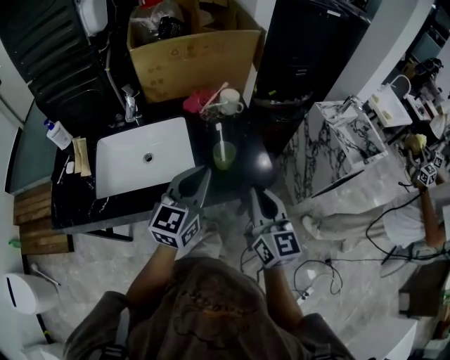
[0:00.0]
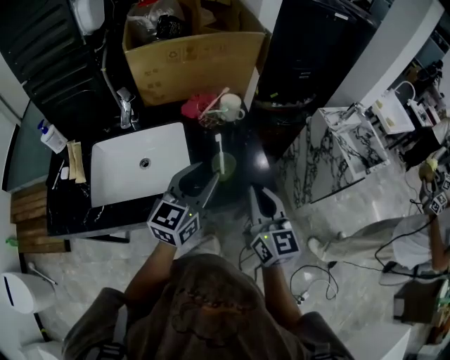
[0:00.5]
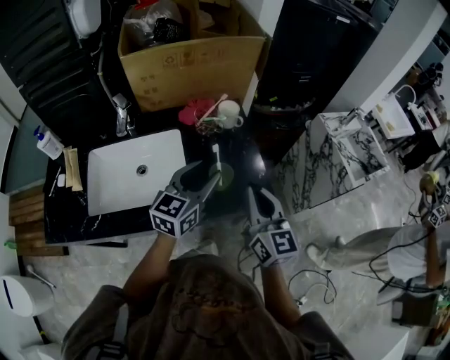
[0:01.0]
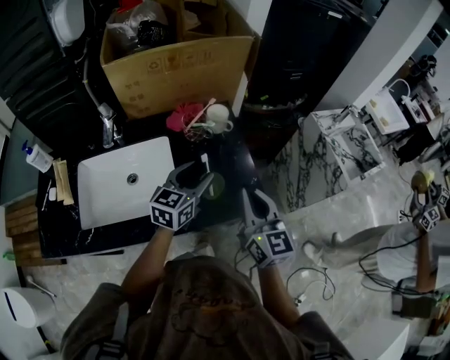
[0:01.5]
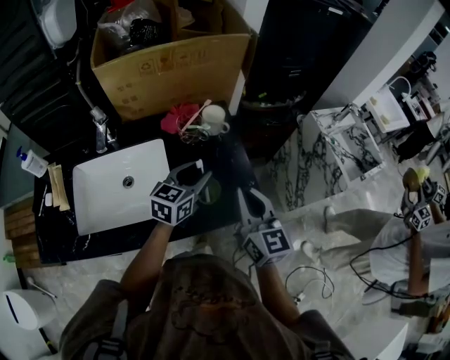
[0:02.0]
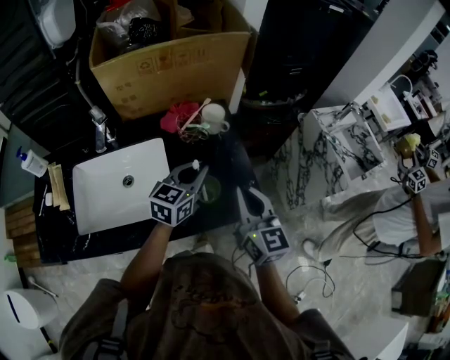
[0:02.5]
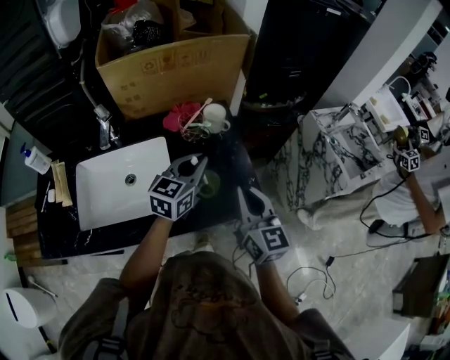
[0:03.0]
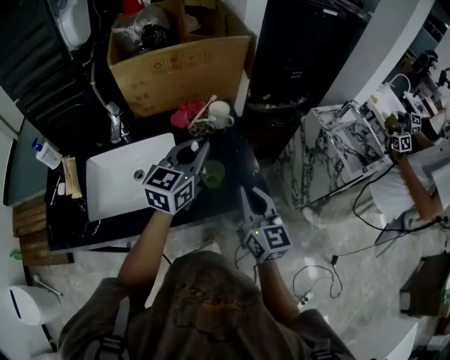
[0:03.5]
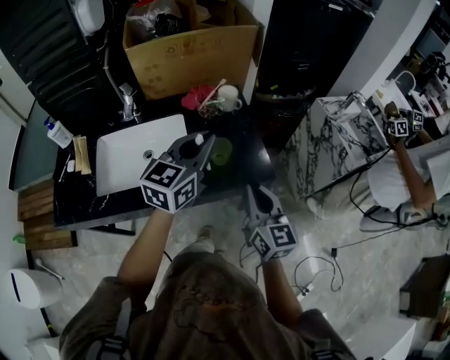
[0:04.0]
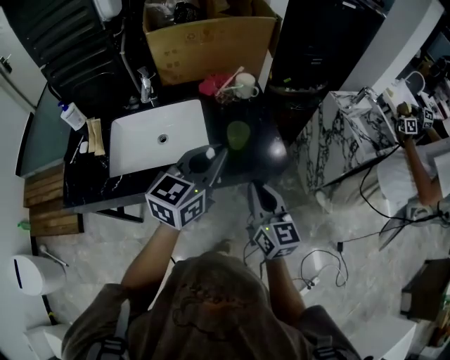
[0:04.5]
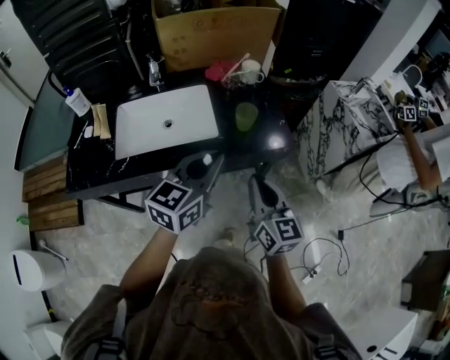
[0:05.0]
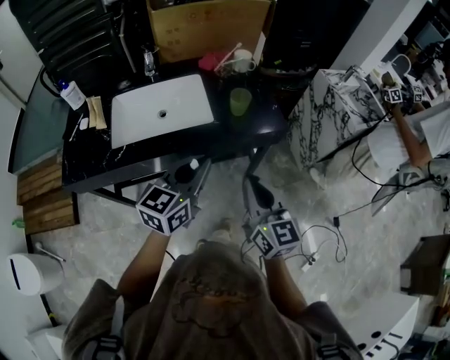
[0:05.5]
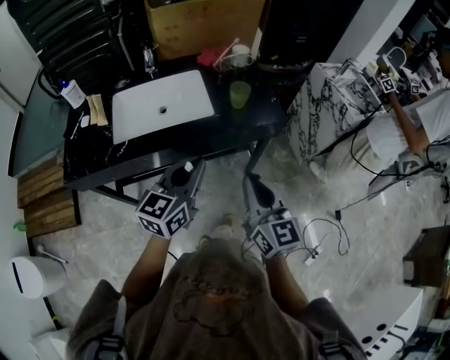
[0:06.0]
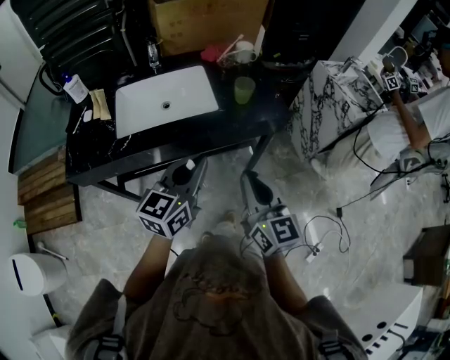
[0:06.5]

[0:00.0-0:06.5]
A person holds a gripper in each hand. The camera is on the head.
0:00.0 to 0:02.0: The right gripper is displaced forward by some 15 cm, while the left gripper goes approximately 20 cm forward and downward, changes its angle by some 20 degrees, and opens up.
0:02.0 to 0:04.5: The right gripper moves backward, some 15 cm. The left gripper shifts approximately 25 cm backward and upward, and closes.
0:04.5 to 0:06.5: The left gripper is displaced backward and to the left by roughly 20 cm; the right gripper heads backward, covering approximately 15 cm.

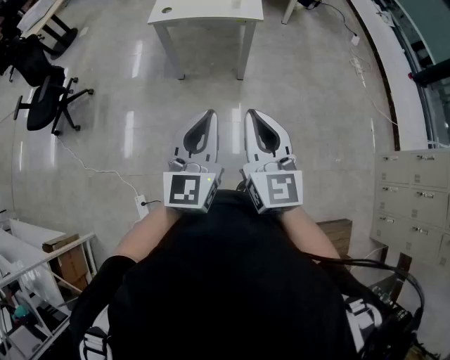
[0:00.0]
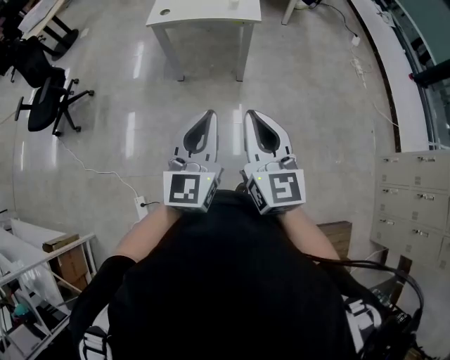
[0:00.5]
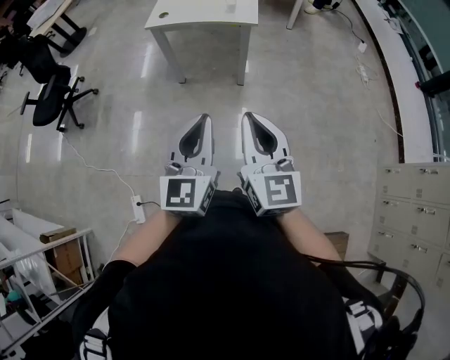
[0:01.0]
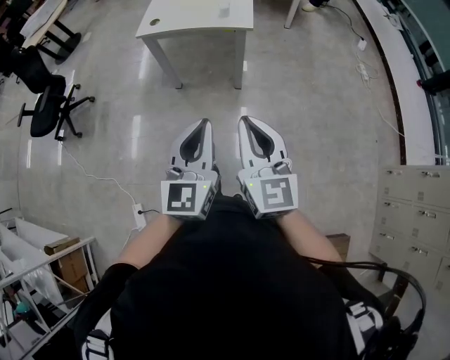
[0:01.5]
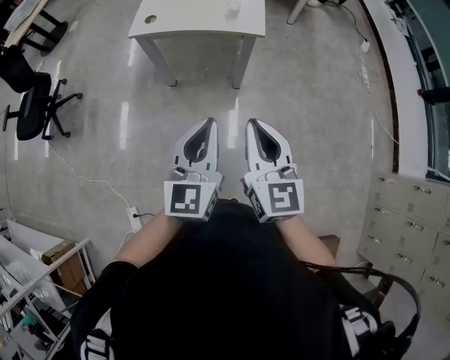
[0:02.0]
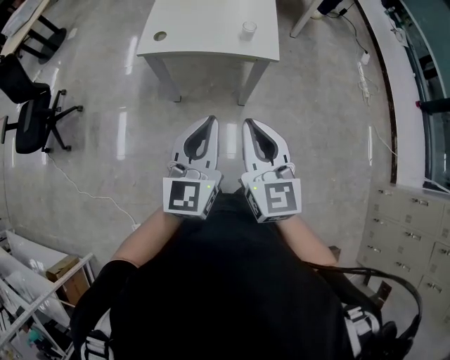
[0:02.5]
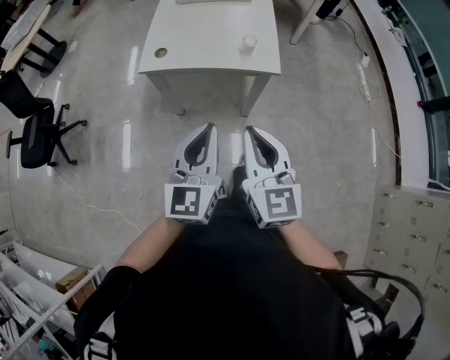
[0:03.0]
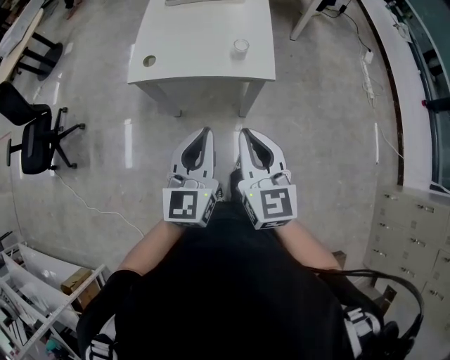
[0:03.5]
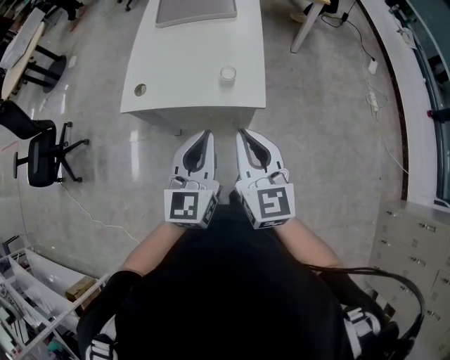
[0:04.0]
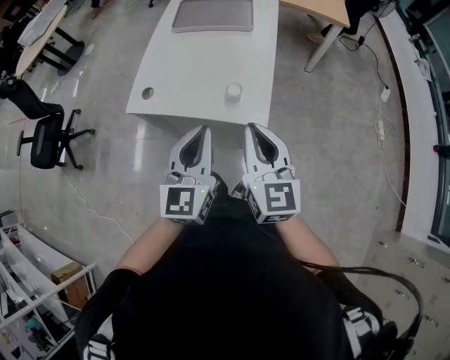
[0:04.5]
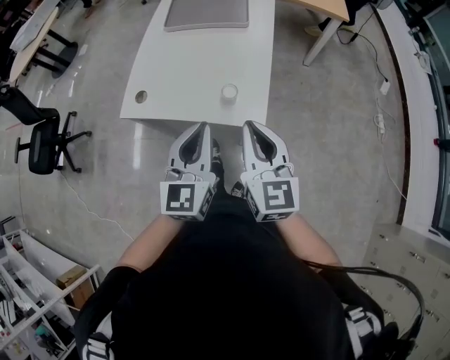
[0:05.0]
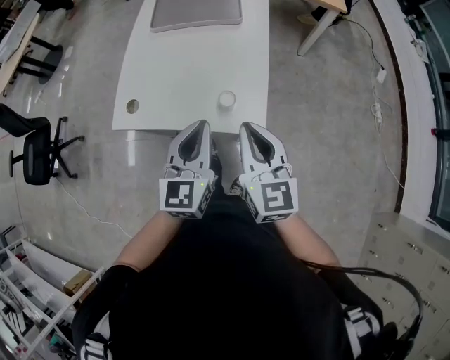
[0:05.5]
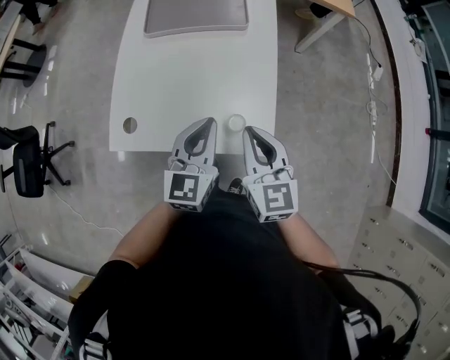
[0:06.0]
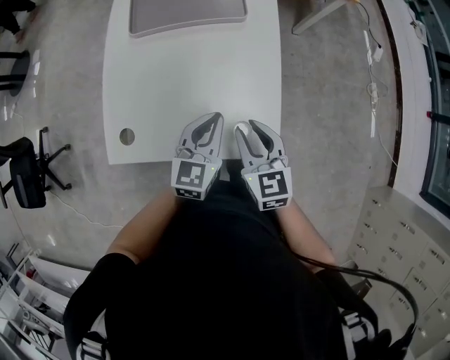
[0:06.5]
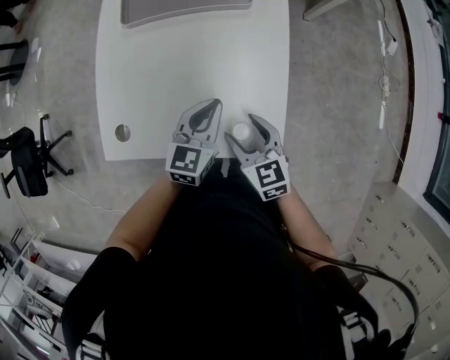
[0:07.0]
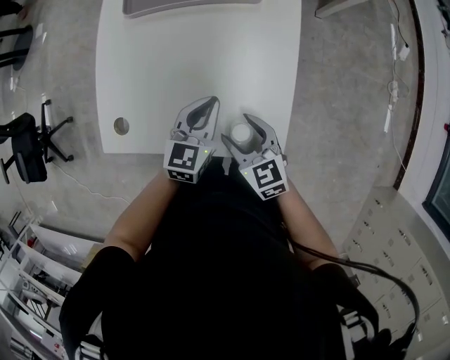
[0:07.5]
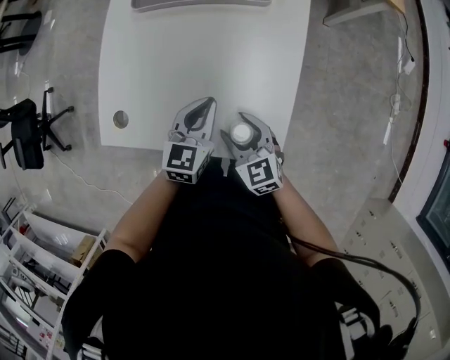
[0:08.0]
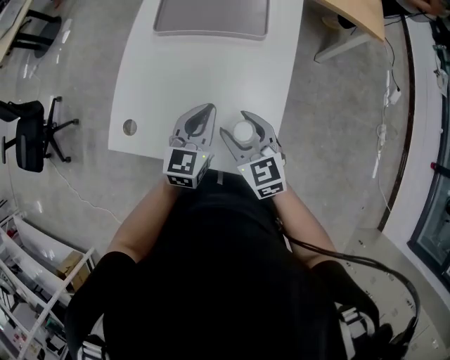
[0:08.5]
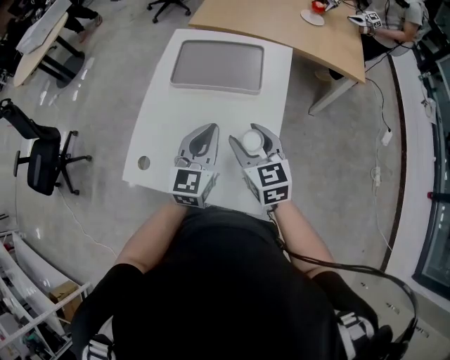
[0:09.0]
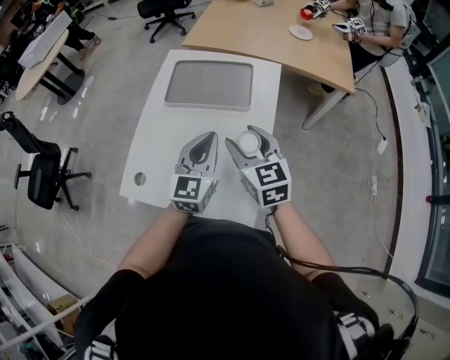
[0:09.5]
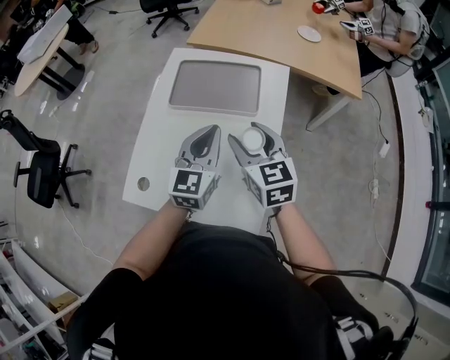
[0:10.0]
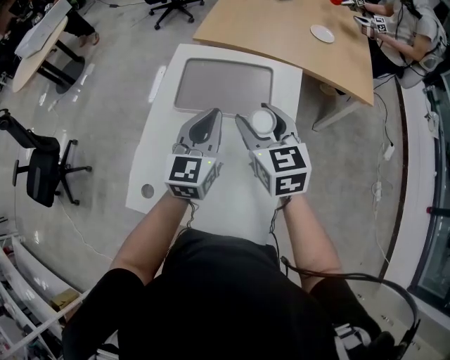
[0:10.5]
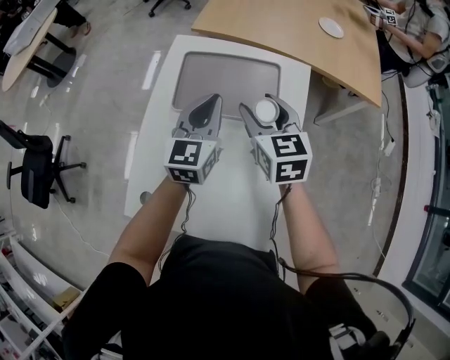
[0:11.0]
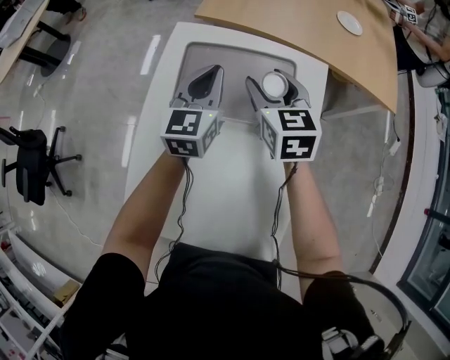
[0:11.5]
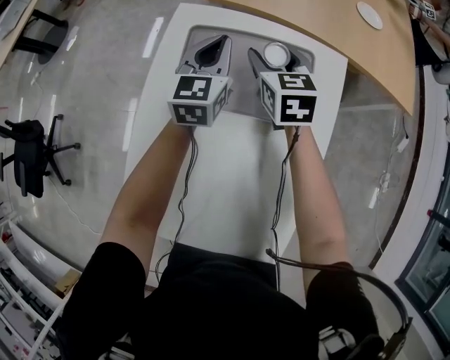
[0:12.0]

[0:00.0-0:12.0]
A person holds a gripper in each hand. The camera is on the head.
0:00.0 to 0:02.0: Both grippers move forward, roughly 25 cm.
0:02.0 to 0:04.0: Both grippers move forward, roughly 35 cm.
0:04.0 to 0:06.0: The two grippers go approximately 30 cm forward.
0:06.0 to 0:08.0: The left gripper is displaced downward and forward by some 20 cm; the right gripper goes roughly 20 cm downward, turns by roughly 30 degrees, and opens.
0:08.0 to 0:10.0: The right gripper moves upward and forward, some 35 cm. Meanwhile the left gripper moves upward, approximately 25 cm, and swivels about 20 degrees.
0:10.0 to 0:12.0: Both grippers travel together forward and downward, about 40 cm.

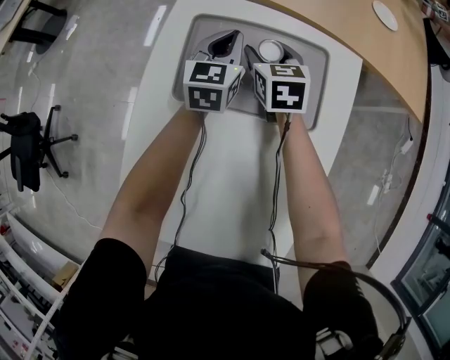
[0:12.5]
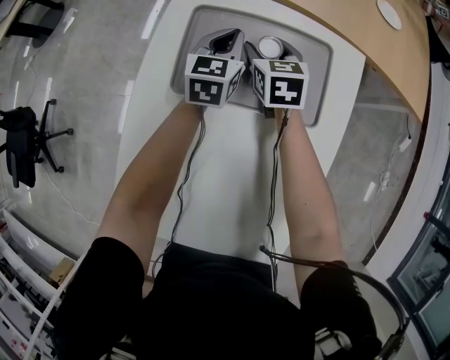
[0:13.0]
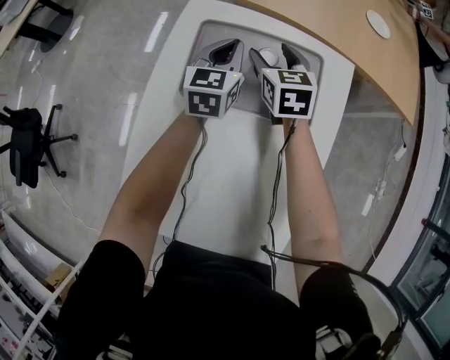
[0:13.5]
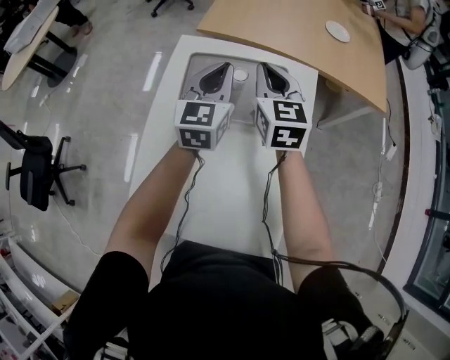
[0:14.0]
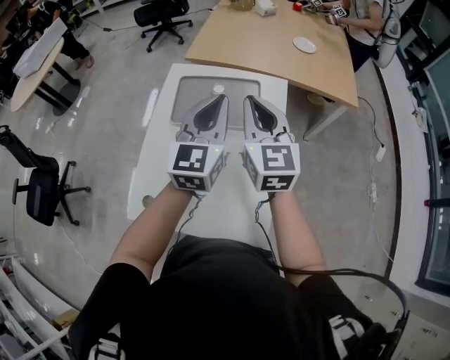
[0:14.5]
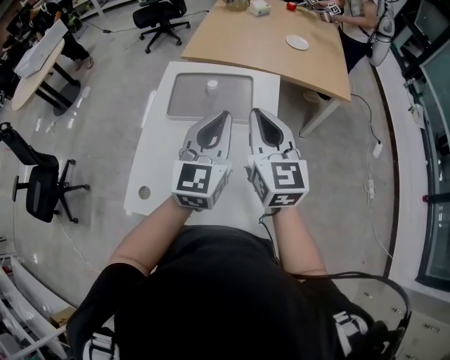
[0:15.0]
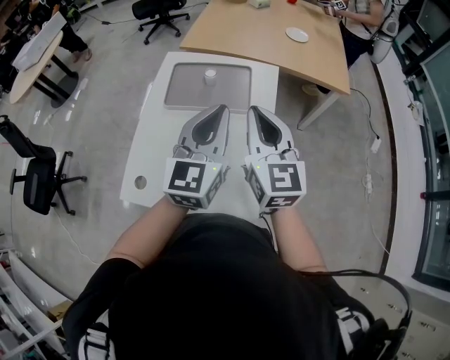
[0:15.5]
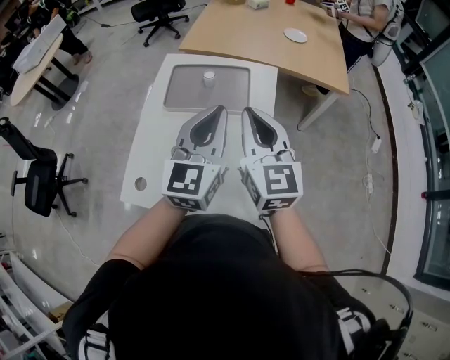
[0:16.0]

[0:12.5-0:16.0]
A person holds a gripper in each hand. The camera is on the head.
0:12.5 to 0:14.5: The two grippers go approximately 50 cm upward and backward. The right gripper tips its fingers upward by some 30 degrees, and closes up.
0:14.5 to 0:16.0: The grippers both shift backward by some 10 cm.

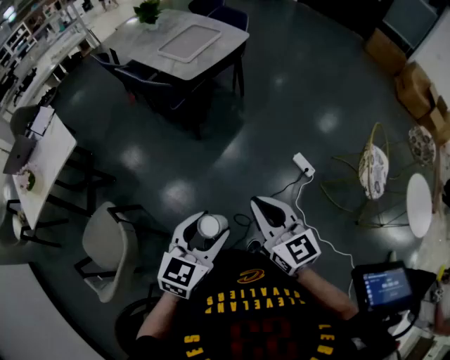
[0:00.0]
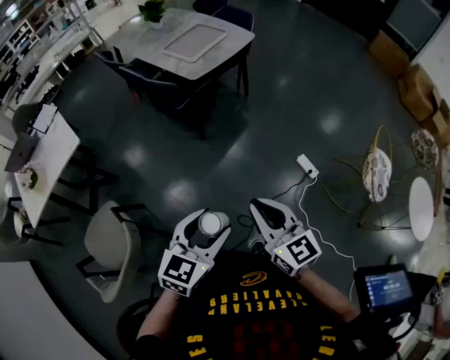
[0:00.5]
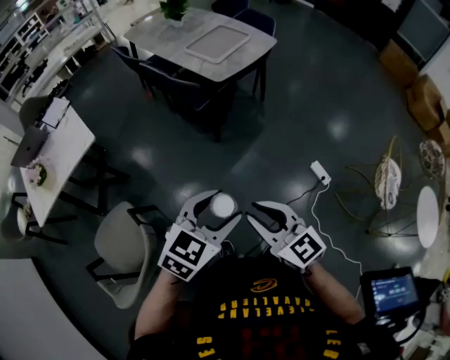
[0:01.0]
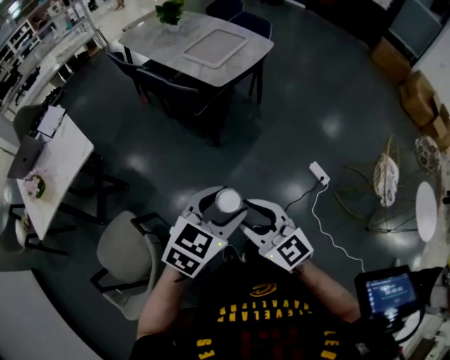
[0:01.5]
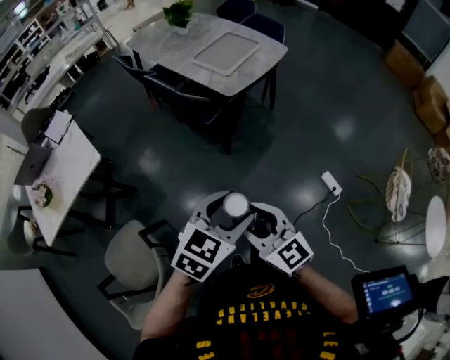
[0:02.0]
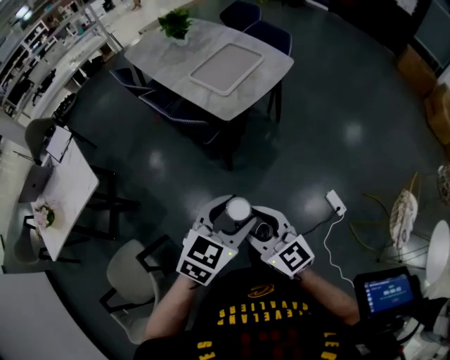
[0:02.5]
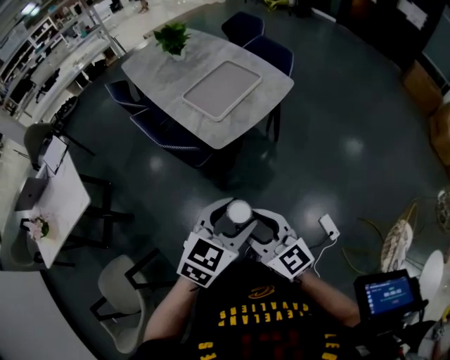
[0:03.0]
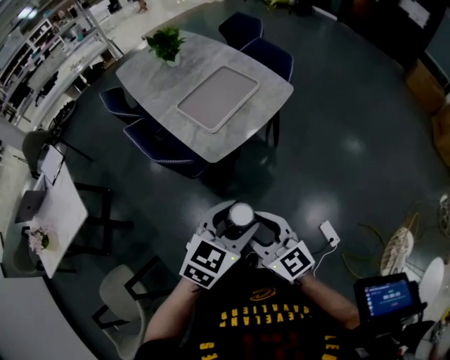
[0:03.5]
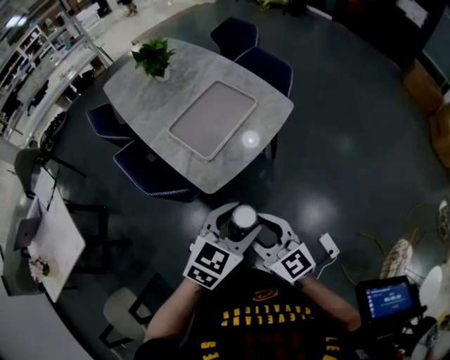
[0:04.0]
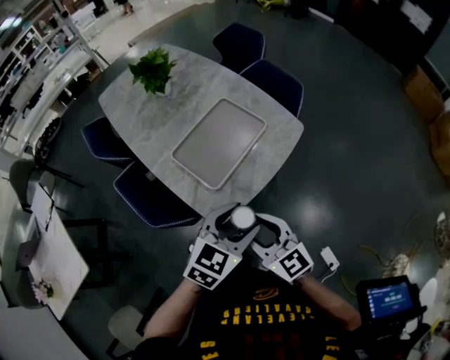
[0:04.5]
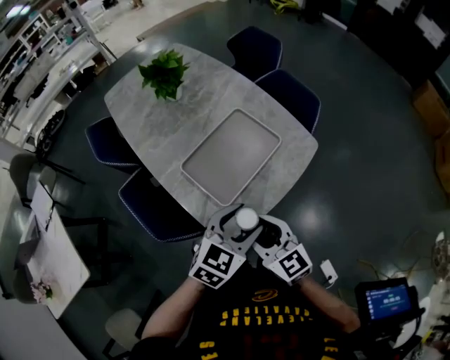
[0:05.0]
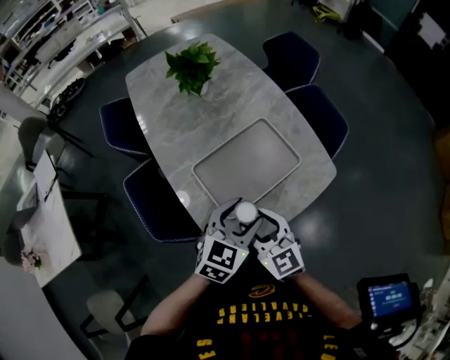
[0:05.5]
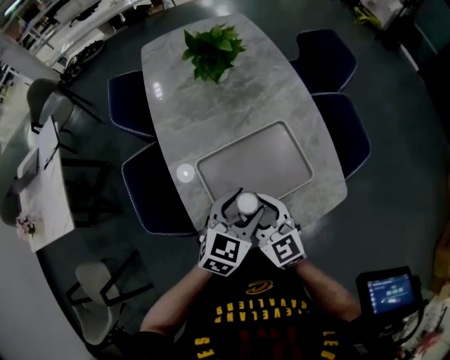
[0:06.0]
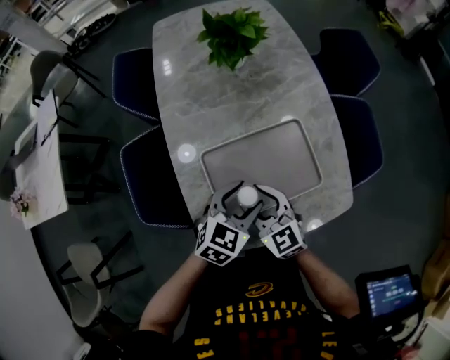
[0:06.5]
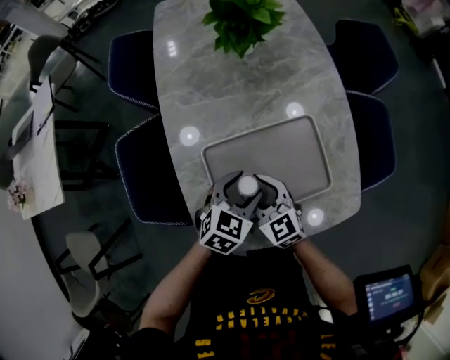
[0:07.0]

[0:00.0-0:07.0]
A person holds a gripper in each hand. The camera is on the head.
0:00.0 to 0:02.0: The right gripper is displaced to the left and forward by approximately 25 cm, and opens its fingers. The left gripper heads forward and to the left, covering some 20 cm.
0:02.0 to 0:03.5: Both grippers travel together forward and to the right, some 35 cm.
0:03.5 to 0:05.0: Both grippers travel together forward, about 35 cm.
0:05.0 to 0:07.0: The left gripper ends up roughly 30 cm from where it was, and rotates about 40 degrees, while the right gripper changes place by some 30 cm, and swivels some 40 degrees.
